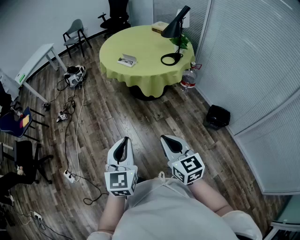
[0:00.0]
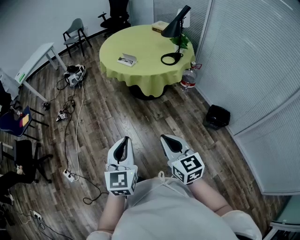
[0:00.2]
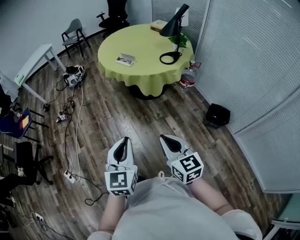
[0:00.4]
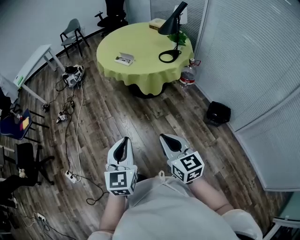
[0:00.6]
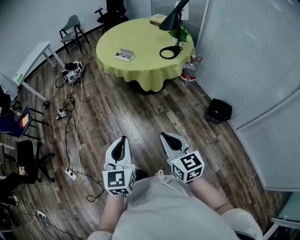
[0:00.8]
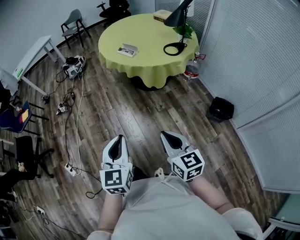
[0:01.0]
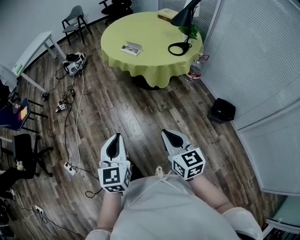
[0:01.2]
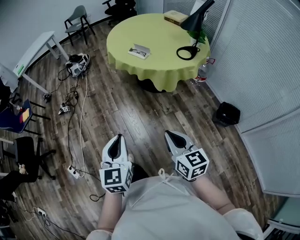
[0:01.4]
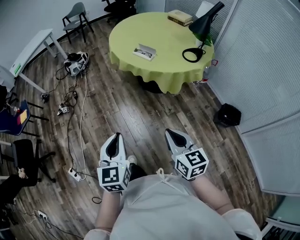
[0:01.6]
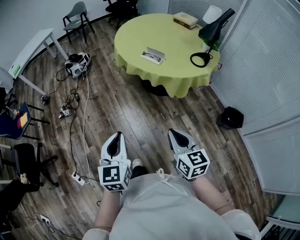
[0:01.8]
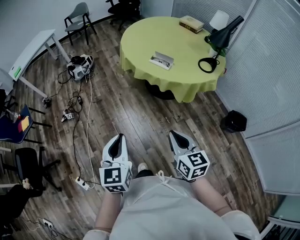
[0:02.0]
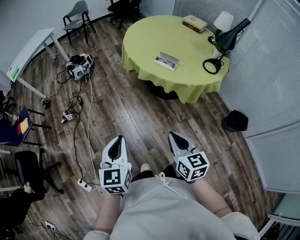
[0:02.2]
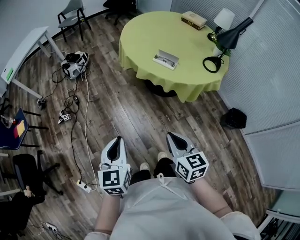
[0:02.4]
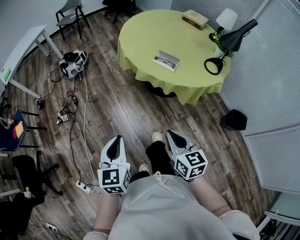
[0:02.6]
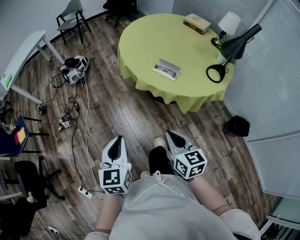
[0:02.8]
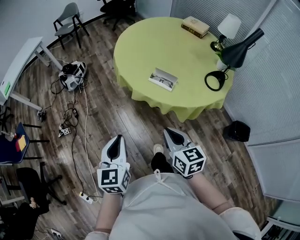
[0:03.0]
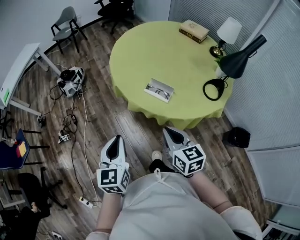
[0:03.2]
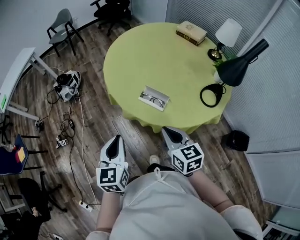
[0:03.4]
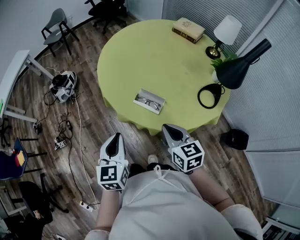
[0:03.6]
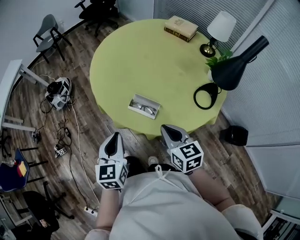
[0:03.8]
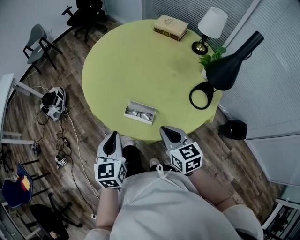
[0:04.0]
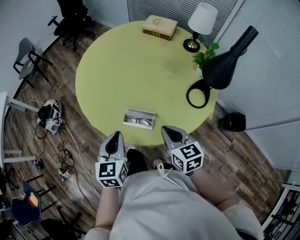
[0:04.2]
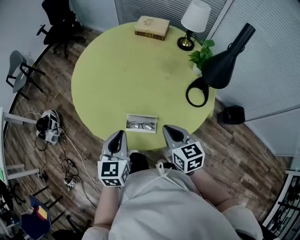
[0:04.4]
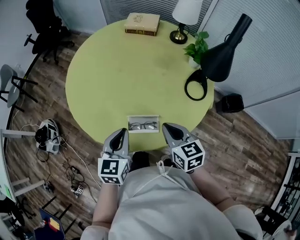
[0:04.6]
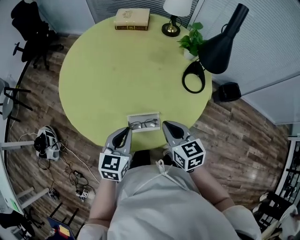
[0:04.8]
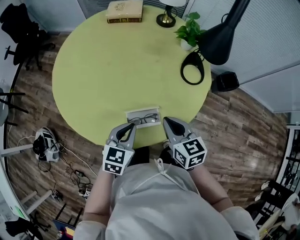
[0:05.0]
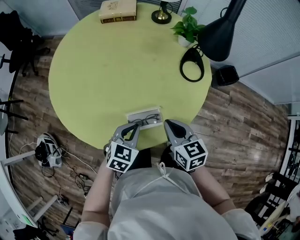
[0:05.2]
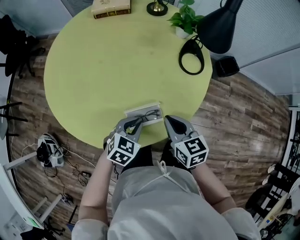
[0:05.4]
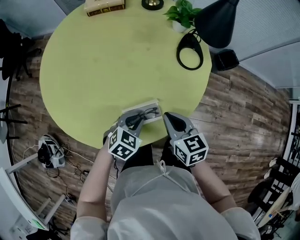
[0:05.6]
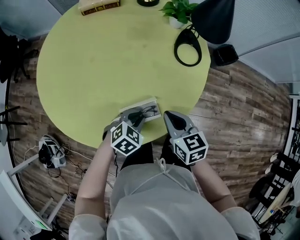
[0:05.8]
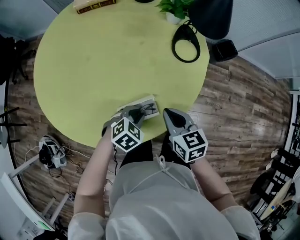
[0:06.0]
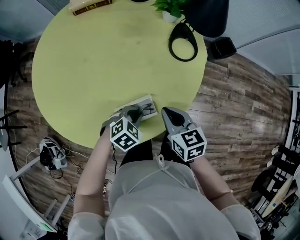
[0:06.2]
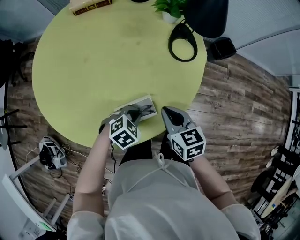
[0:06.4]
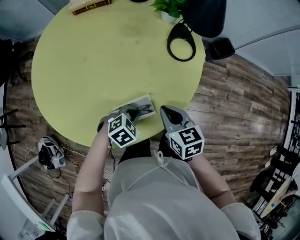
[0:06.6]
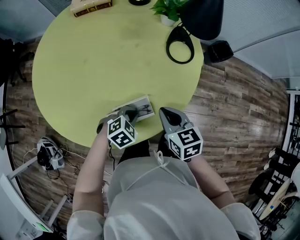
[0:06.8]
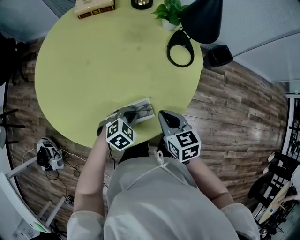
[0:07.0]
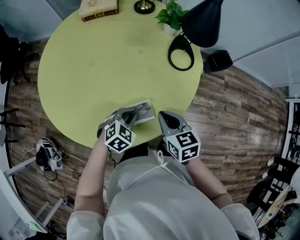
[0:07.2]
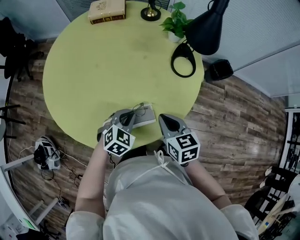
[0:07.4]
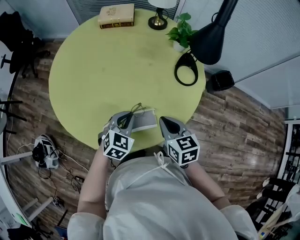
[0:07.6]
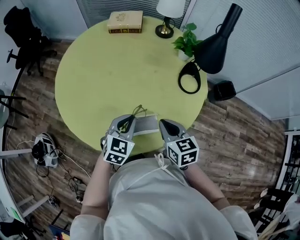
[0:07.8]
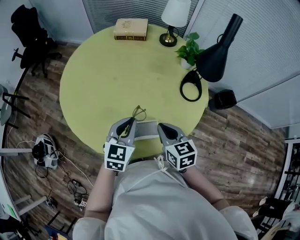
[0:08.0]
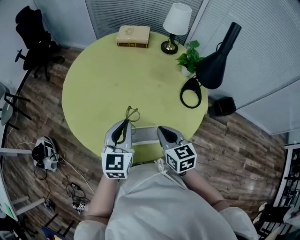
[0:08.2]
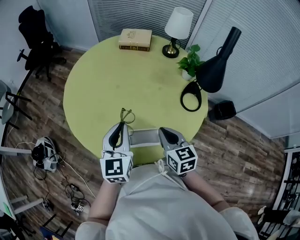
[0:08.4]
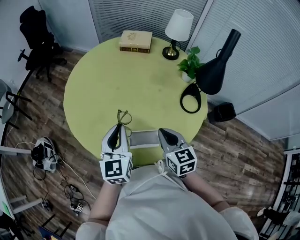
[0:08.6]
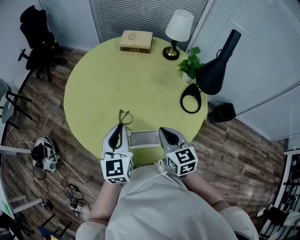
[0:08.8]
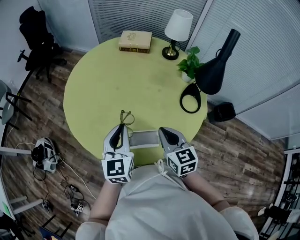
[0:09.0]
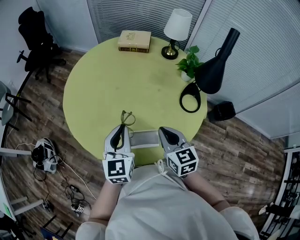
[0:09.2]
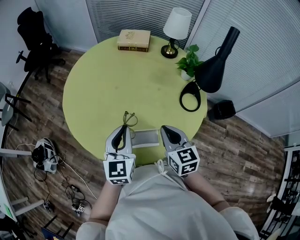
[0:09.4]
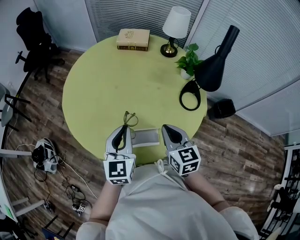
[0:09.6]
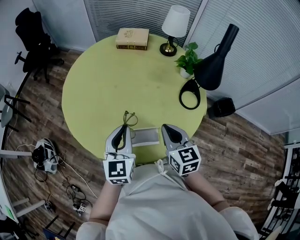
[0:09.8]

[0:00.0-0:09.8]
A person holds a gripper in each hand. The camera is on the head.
0:00.0 to 0:01.4: The left gripper travels to the left and forward by roughly 15 cm, while the right gripper shifts some 15 cm forward and to the left.
0:01.4 to 0:02.8: Both grippers travel together forward and to the left, roughly 40 cm.
0:02.8 to 0:04.2: Both grippers travel together forward and to the right, approximately 40 cm. The left gripper rotates some 20 degrees.
0:04.2 to 0:05.6: The left gripper goes about 20 cm downward, and turns by about 80 degrees. Meanwhile the right gripper goes roughly 10 cm downward, and rotates roughly 30 degrees.
0:07.0 to 0:08.4: The right gripper is displaced upward by approximately 10 cm; the left gripper moves upward, roughly 25 cm, and angles its fingers upward, by some 50 degrees.
0:08.4 to 0:09.8: The grippers make only small movements.

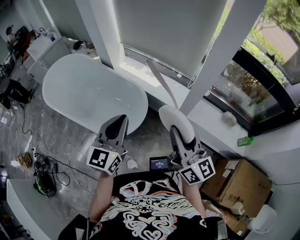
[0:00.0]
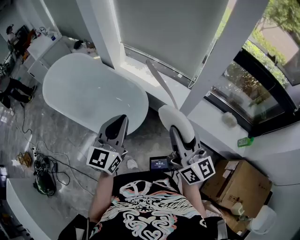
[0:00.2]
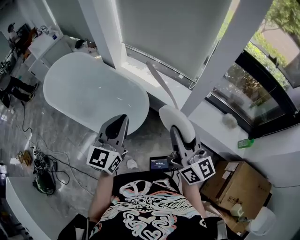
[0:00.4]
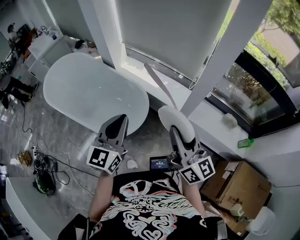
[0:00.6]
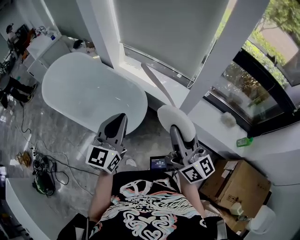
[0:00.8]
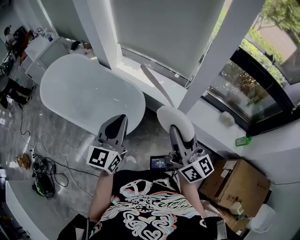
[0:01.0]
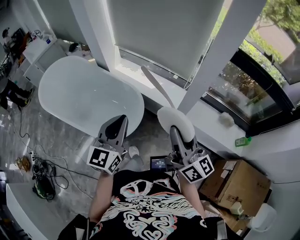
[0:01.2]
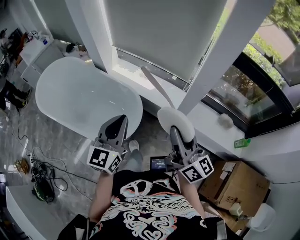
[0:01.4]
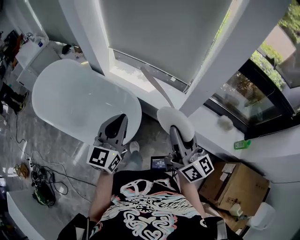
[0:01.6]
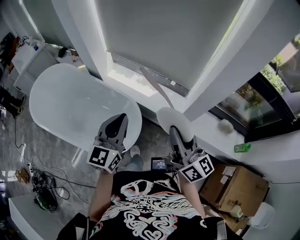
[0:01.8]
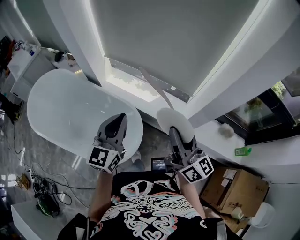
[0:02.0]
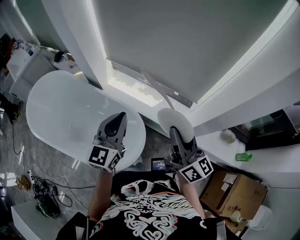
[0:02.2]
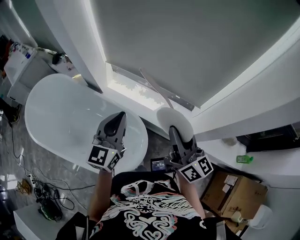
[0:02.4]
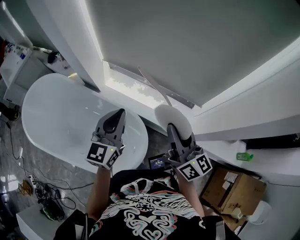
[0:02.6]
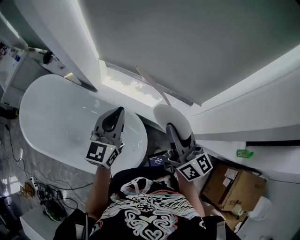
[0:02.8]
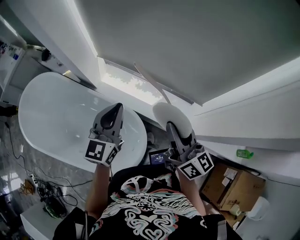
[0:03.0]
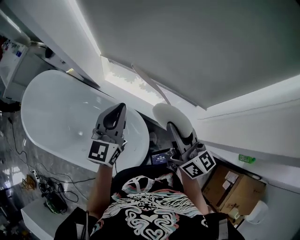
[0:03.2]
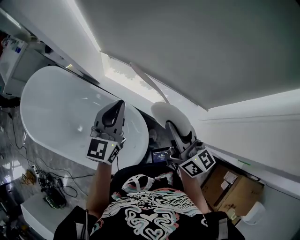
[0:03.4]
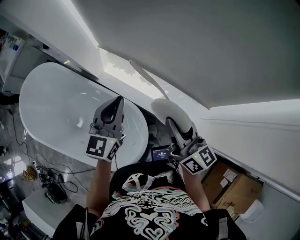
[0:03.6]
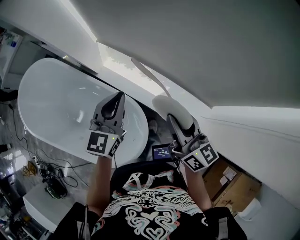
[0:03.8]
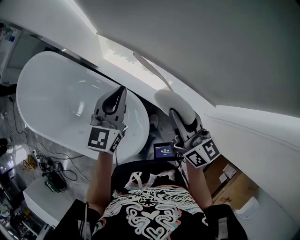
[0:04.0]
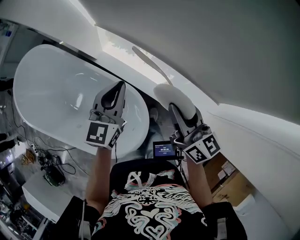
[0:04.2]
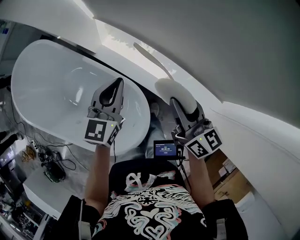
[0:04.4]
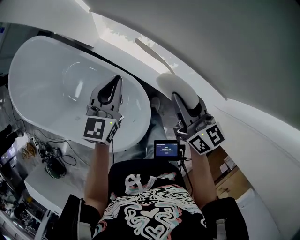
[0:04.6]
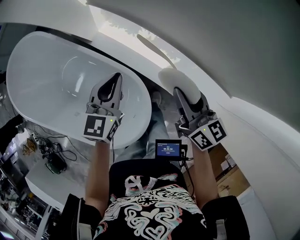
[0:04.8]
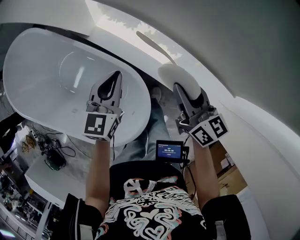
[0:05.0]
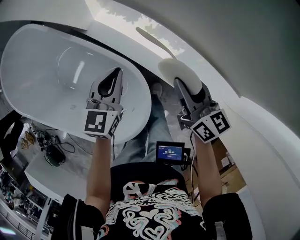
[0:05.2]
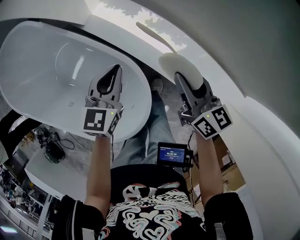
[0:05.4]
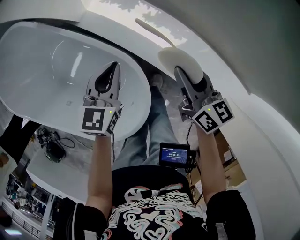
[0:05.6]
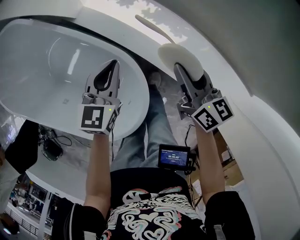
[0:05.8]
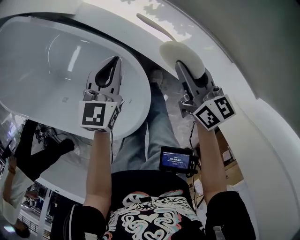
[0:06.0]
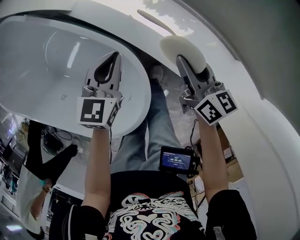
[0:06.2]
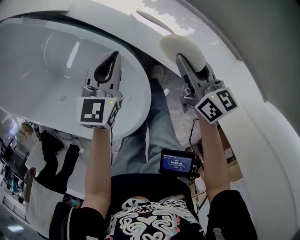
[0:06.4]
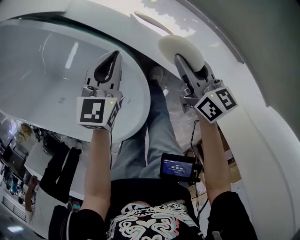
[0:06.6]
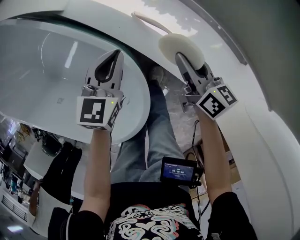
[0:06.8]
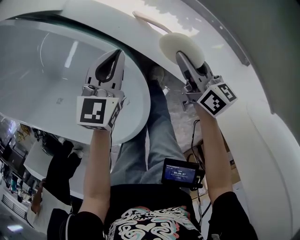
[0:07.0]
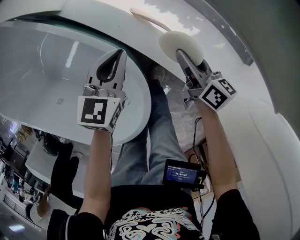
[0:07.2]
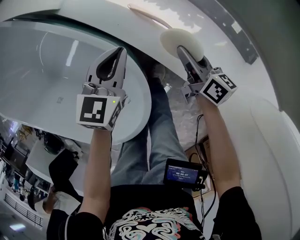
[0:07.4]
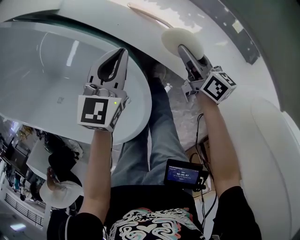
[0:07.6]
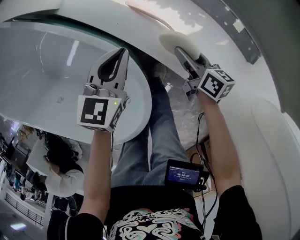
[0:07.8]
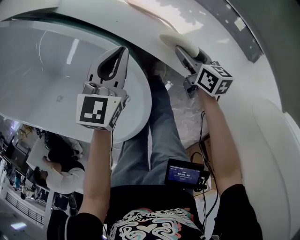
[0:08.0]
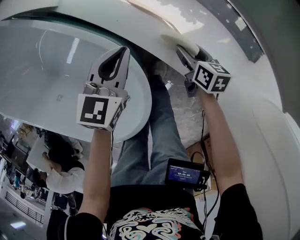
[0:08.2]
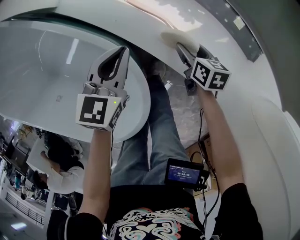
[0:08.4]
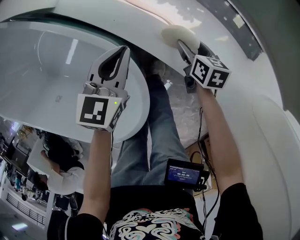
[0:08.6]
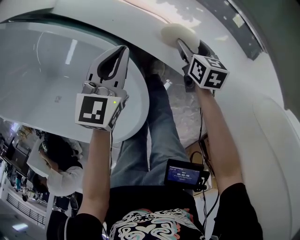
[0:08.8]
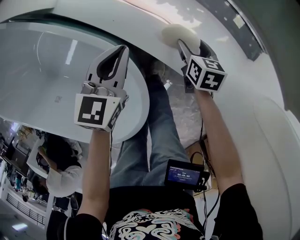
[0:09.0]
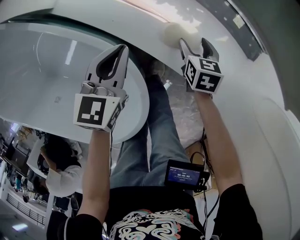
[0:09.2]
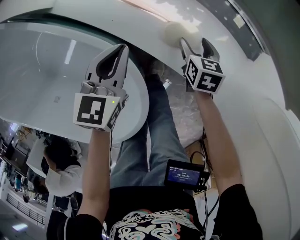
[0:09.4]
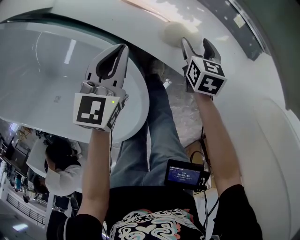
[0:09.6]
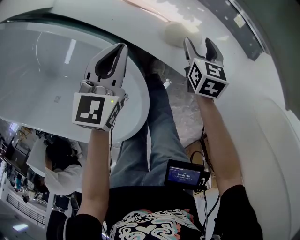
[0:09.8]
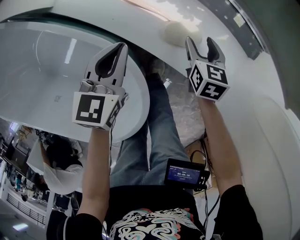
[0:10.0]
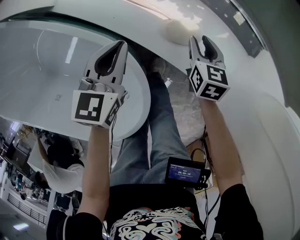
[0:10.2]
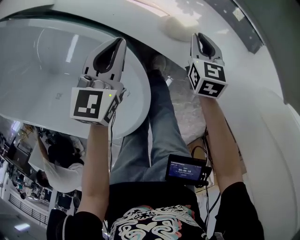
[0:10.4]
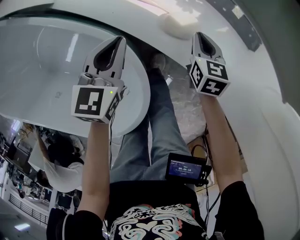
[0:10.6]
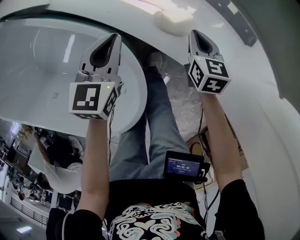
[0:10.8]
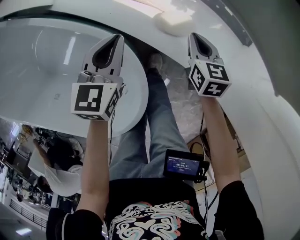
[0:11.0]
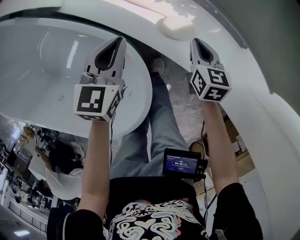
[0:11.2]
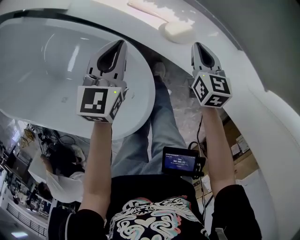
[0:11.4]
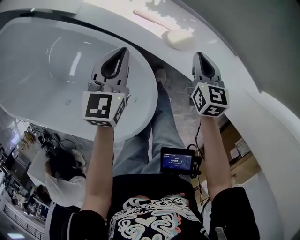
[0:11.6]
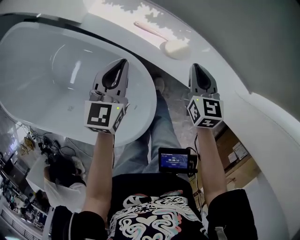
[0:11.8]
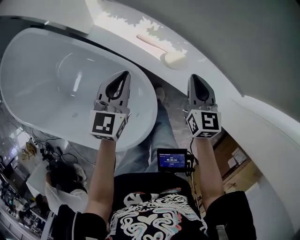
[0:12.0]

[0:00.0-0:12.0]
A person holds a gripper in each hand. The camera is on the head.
0:00.0 to 0:01.6: Both grippers move forward, roughly 10 cm.
0:01.6 to 0:03.0: The grippers both shift forward by roughly 30 cm.
0:03.0 to 0:04.4: The grippers both shift downward and forward by approximately 20 cm.
0:04.4 to 0:06.0: Both grippers move downward, about 25 cm.
0:06.0 to 0:07.6: The right gripper is displaced downward by about 20 cm; the left gripper shifts about 10 cm downward.
0:07.6 to 0:09.0: The right gripper is displaced downward by approximately 5 cm, points its fingers about 30 degrees further downward, and opens.
0:09.0 to 0:10.4: The right gripper changes place by roughly 5 cm, and closes.
0:10.4 to 0:12.0: Both grippers travel together upward, about 20 cm.

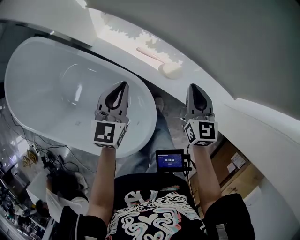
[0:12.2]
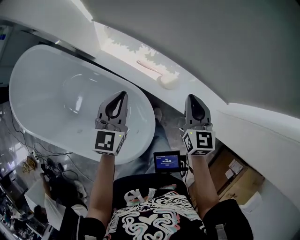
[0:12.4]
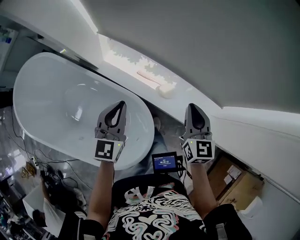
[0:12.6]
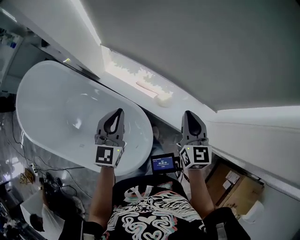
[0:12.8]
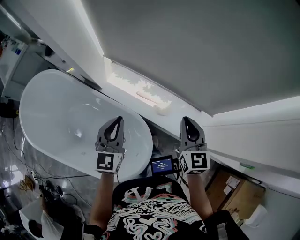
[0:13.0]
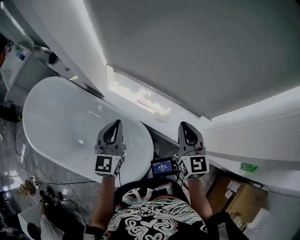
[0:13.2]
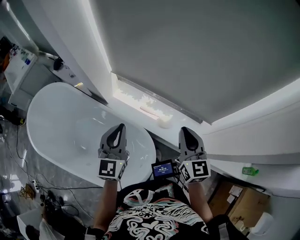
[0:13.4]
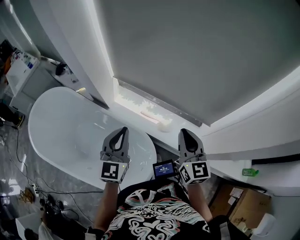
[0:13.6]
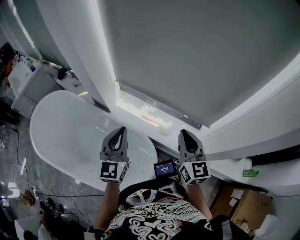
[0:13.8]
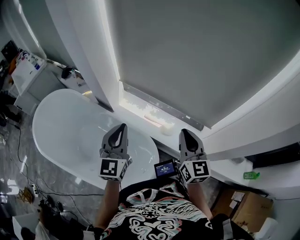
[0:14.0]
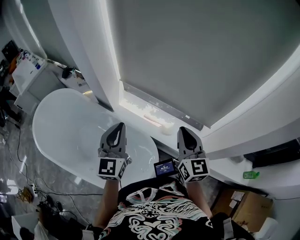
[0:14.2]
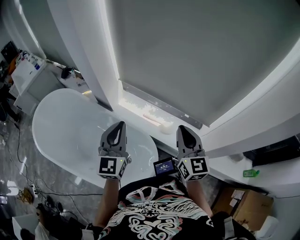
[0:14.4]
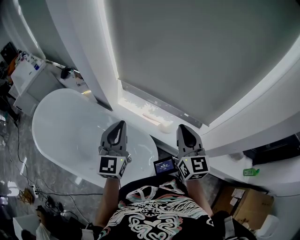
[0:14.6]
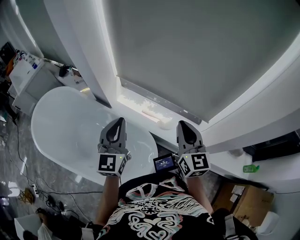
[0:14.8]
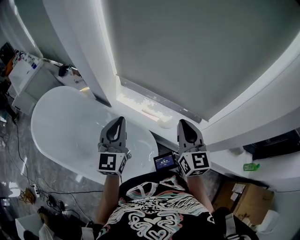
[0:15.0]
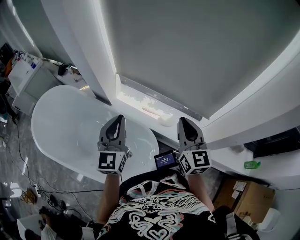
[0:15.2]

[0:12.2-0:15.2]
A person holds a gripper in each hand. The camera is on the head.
0:12.2 to 0:13.8: The right gripper shifts some 35 cm upward and backward. Meanwhile the left gripper travels upward by some 30 cm, and rotates about 20 degrees.
0:13.8 to 0:15.2: There are only small adjustments of the grippers.
